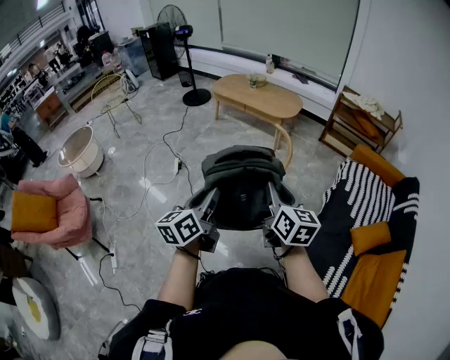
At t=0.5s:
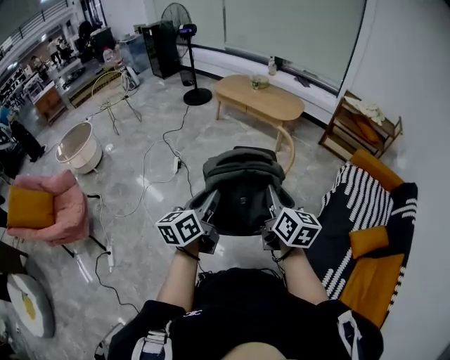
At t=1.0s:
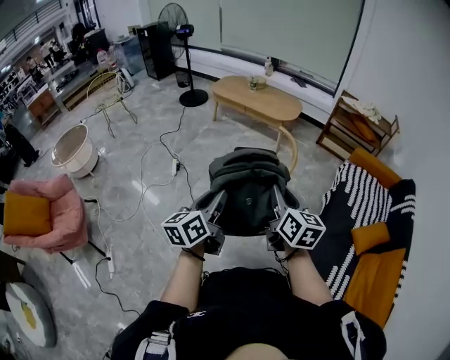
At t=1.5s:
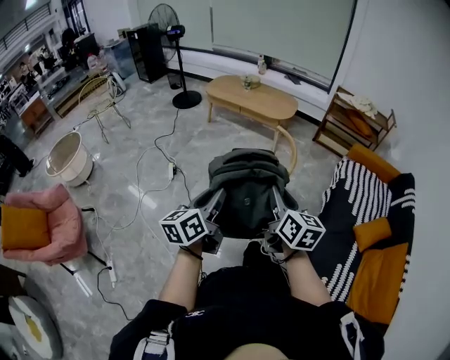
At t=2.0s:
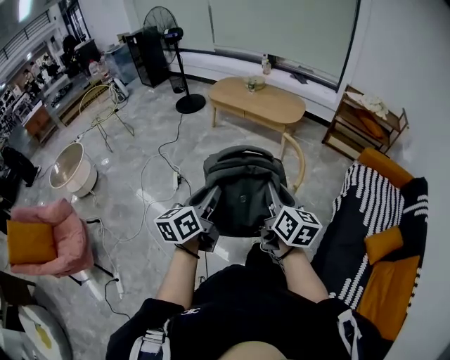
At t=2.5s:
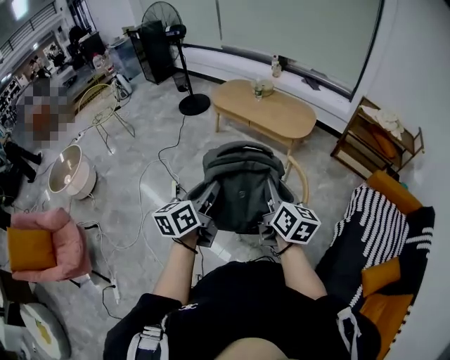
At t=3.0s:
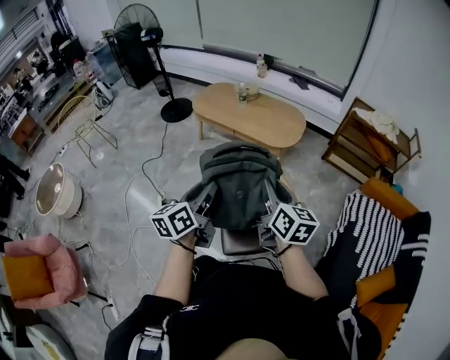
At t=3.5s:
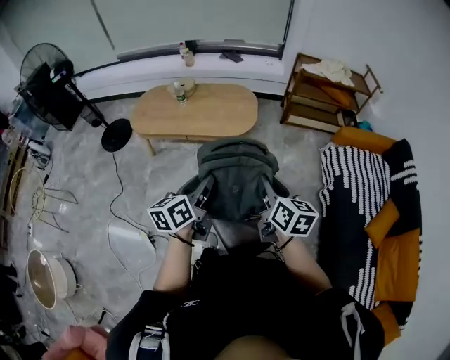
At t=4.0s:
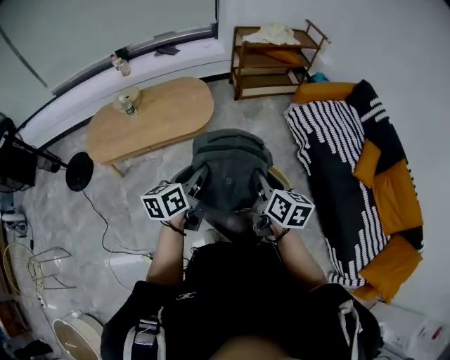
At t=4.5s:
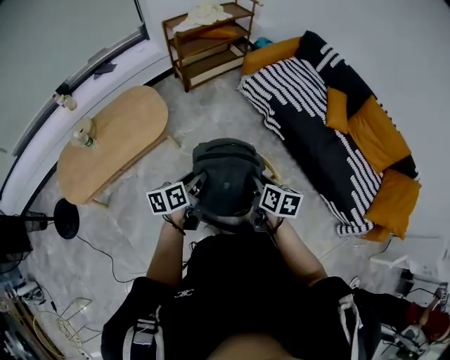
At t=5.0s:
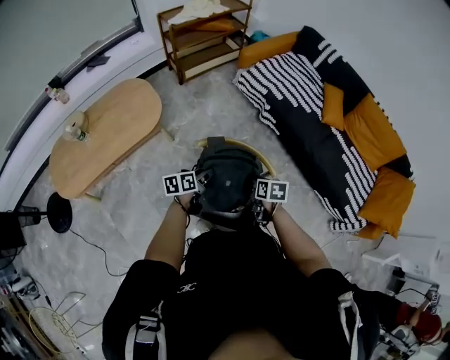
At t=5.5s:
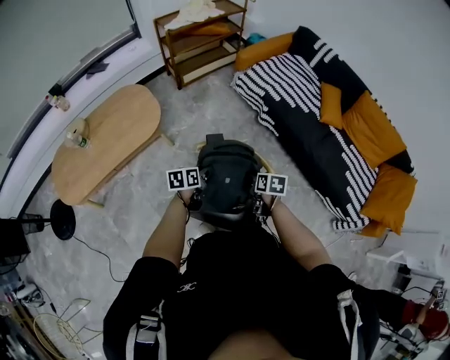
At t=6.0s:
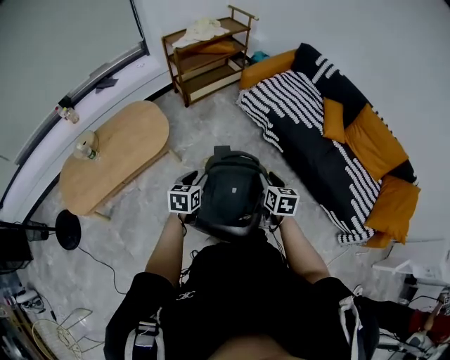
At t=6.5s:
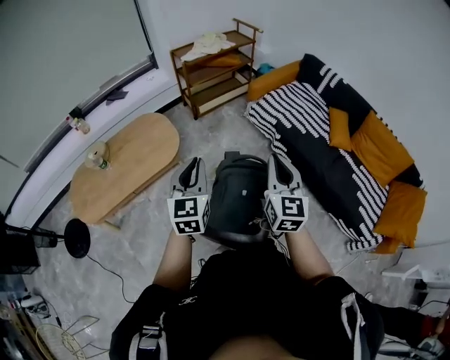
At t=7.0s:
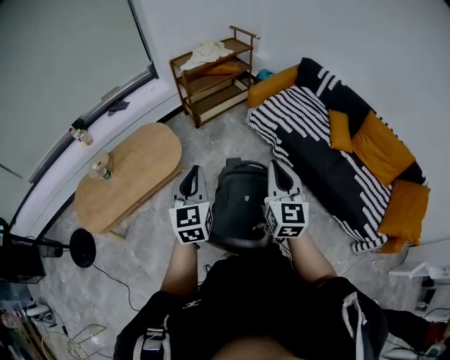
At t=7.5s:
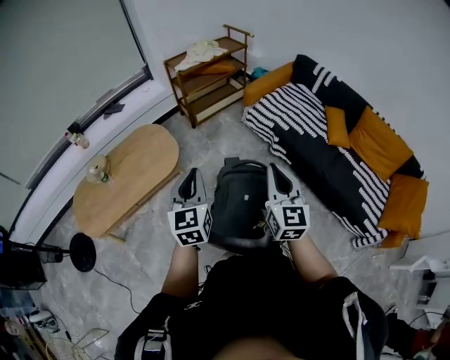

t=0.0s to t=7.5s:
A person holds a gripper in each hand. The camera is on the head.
t=0.0s to t=2.0s: The grippers both shift forward and to the left by some 20 cm.
t=2.0s to t=4.0s: The two grippers travel together, approximately 70 cm. The left gripper swivels some 50 degrees, while the right gripper turns by approximately 40 degrees.
t=4.0s to t=5.5s: The grippers both shift downward and to the right by about 25 cm. The right gripper turns by approximately 30 degrees, while the left gripper rotates approximately 40 degrees.
t=5.5s to t=7.5s: The two grippers go some 30 cm upward. The right gripper tilts its fingers about 50 degrees upward, and closes up. The left gripper swivels approximately 60 degrees, and closes its fingers.

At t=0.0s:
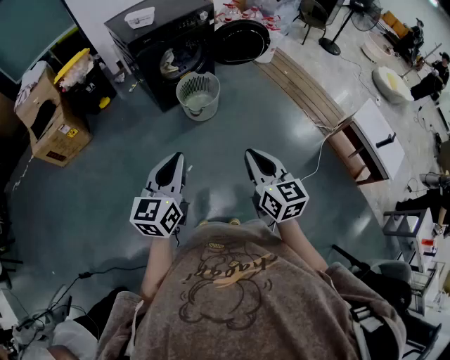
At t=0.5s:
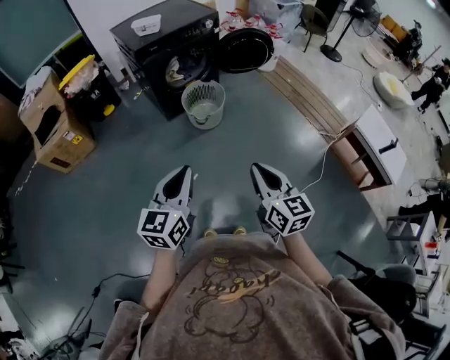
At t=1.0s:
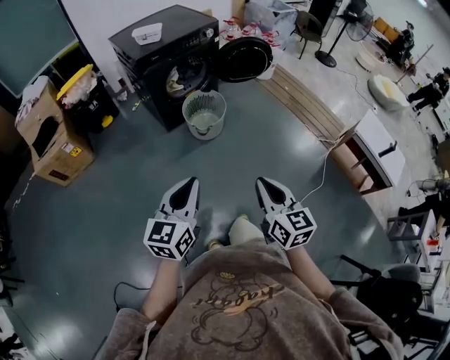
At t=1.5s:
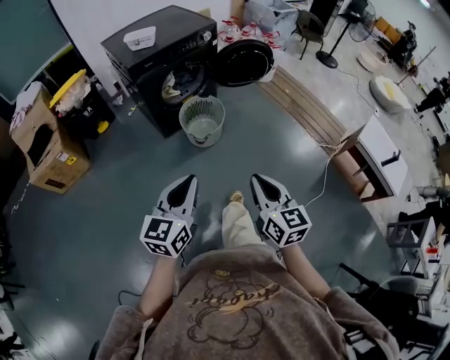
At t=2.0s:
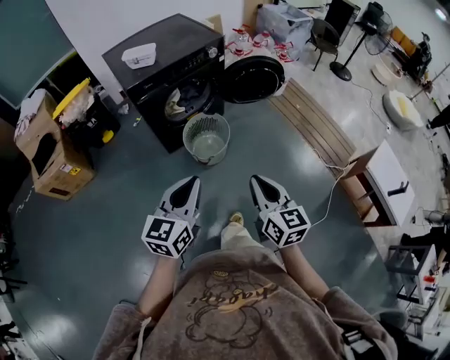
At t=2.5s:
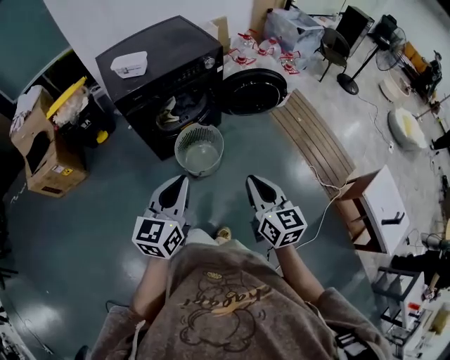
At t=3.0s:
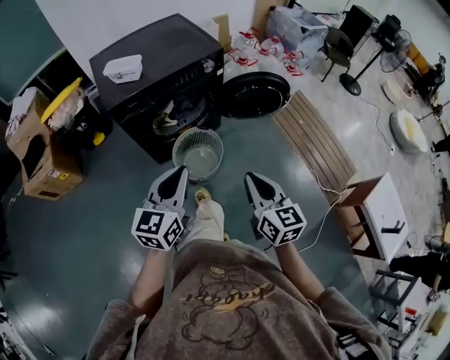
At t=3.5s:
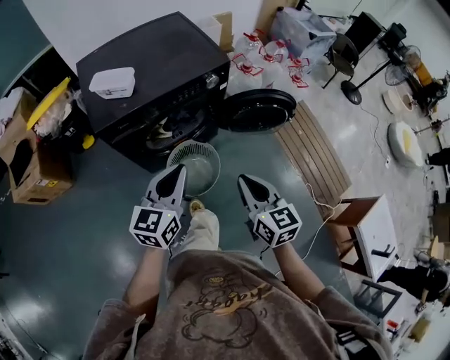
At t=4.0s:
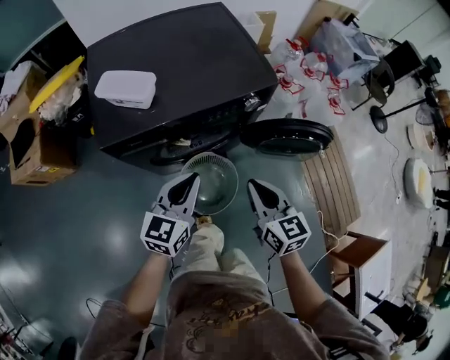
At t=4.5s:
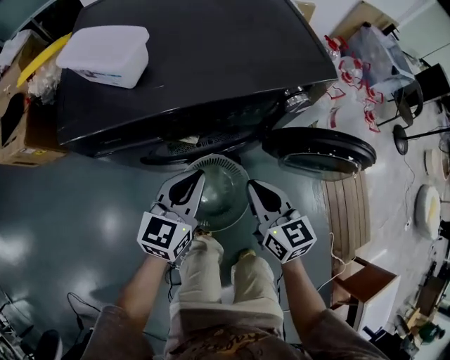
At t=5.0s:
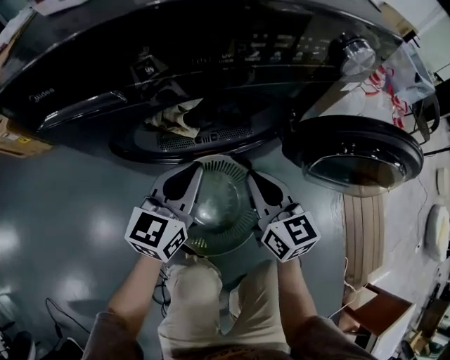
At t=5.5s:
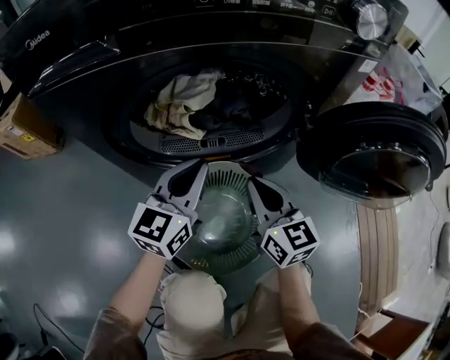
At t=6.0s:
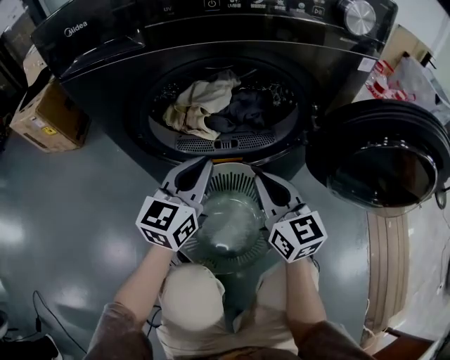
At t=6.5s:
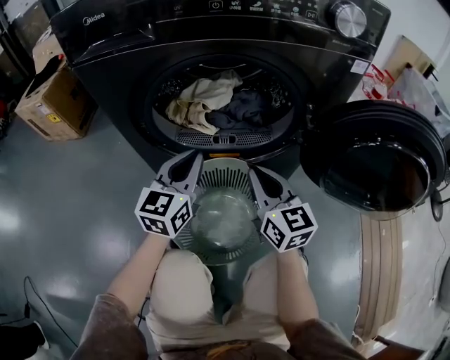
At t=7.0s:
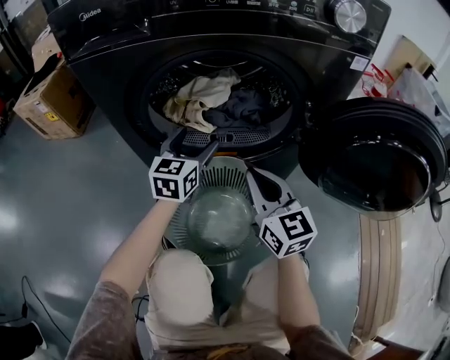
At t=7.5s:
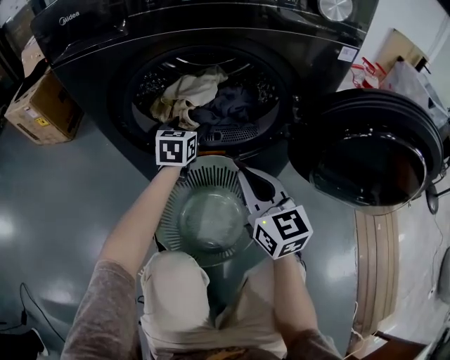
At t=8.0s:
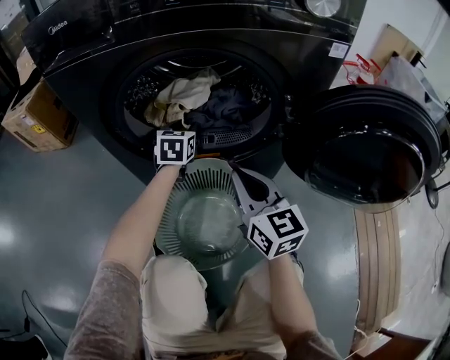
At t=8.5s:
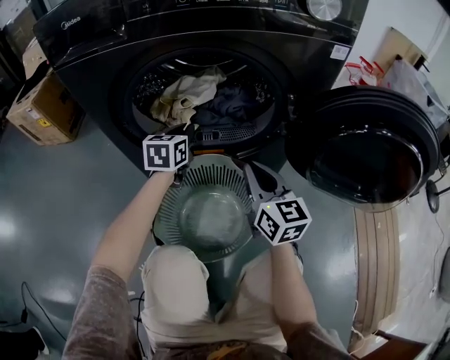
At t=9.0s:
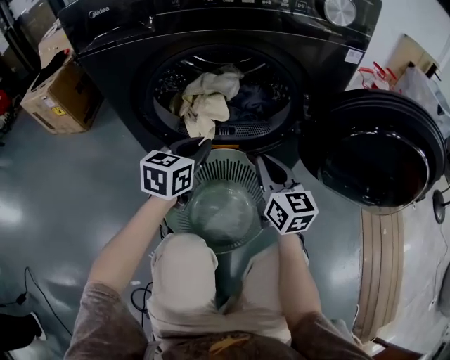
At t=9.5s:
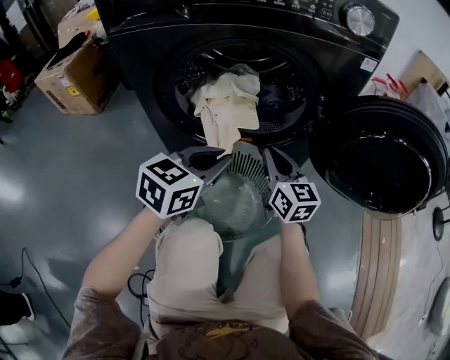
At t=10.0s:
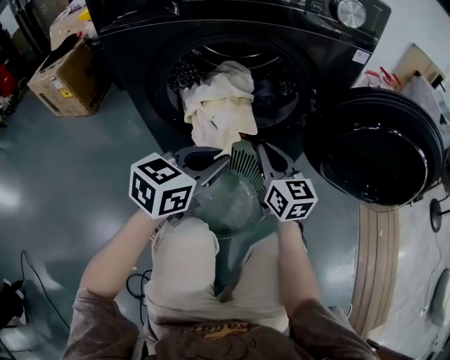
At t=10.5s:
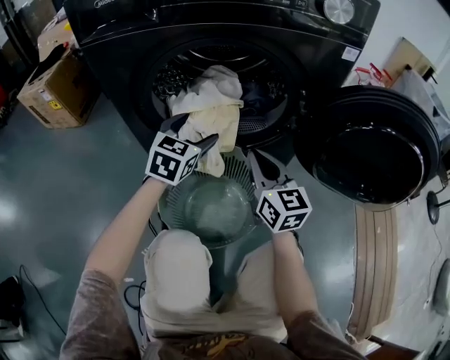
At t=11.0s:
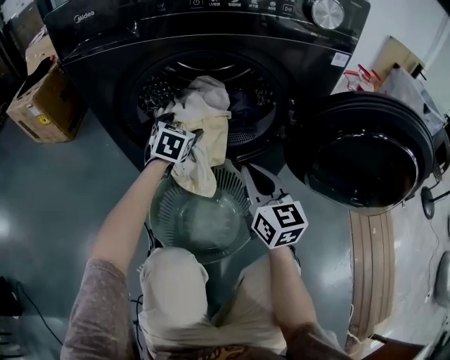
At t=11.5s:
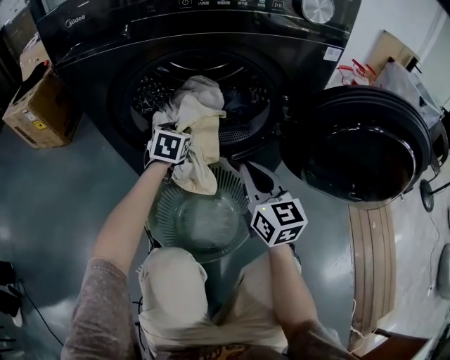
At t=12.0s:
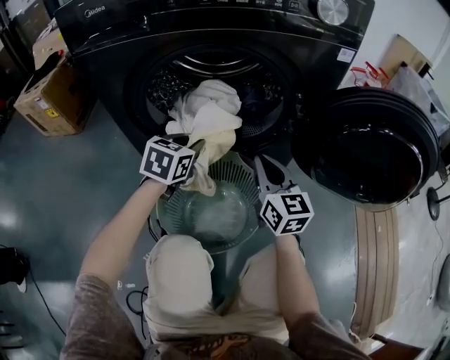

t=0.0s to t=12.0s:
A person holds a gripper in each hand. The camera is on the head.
t=0.0s to t=2.0s: Both grippers travel together forward, some 25 cm.
t=2.0s to t=4.0s: The two grippers travel together, forward, roughly 50 cm. The right gripper turns by roughly 20 degrees.
t=4.0s to t=6.0s: Both grippers move downward, approximately 40 cm. The right gripper rotates roughly 20 degrees. The left gripper changes its angle by some 20 degrees.
t=6.0s to t=8.0s: The left gripper shifts approximately 20 cm forward and downward, turns by some 30 degrees, and opens up.
t=8.0s to t=10.0s: The left gripper heads backward and upward, covering about 30 cm, and rotates about 30 degrees.
t=10.0s to t=12.0s: The left gripper moves forward and downward, some 15 cm, swivels roughly 20 degrees, and opens and closes again.

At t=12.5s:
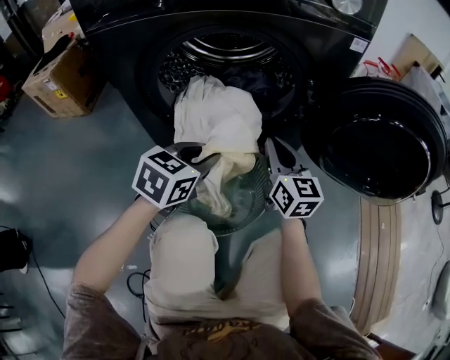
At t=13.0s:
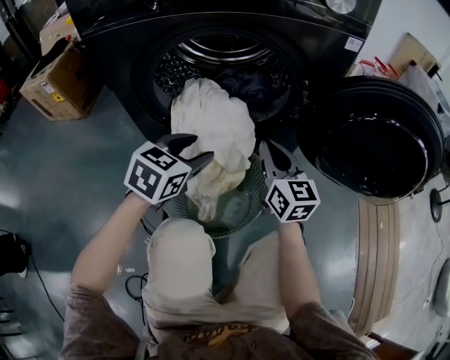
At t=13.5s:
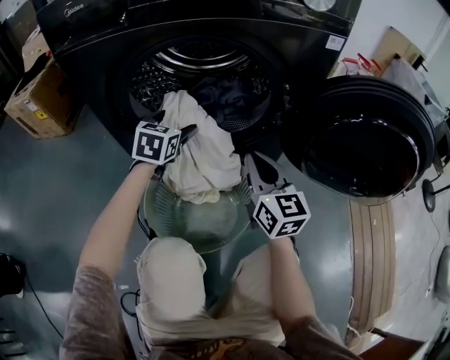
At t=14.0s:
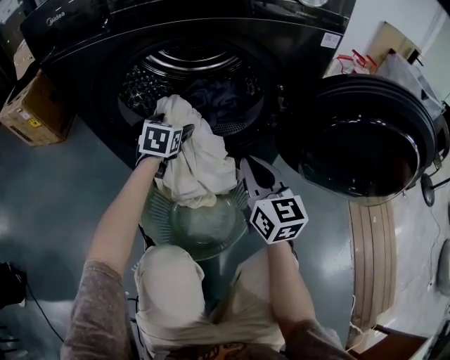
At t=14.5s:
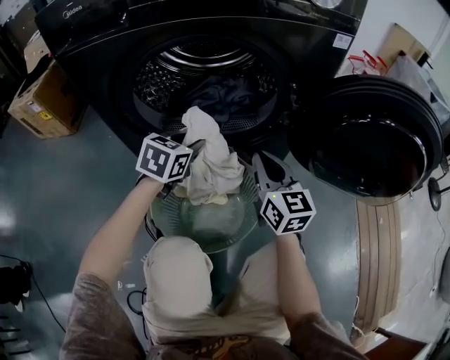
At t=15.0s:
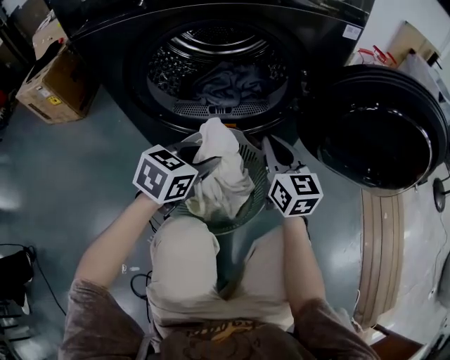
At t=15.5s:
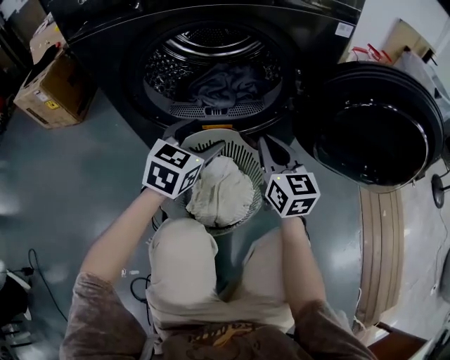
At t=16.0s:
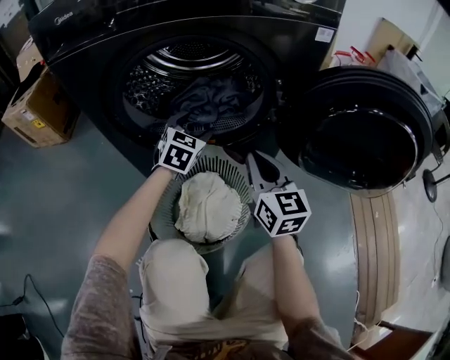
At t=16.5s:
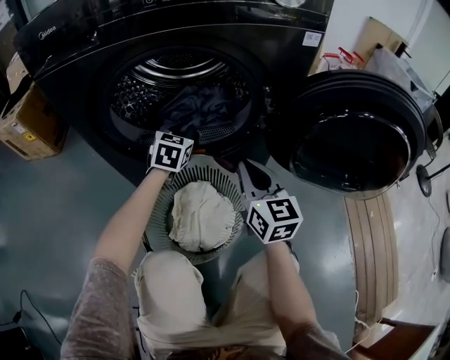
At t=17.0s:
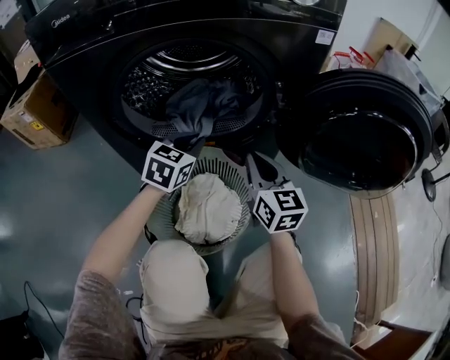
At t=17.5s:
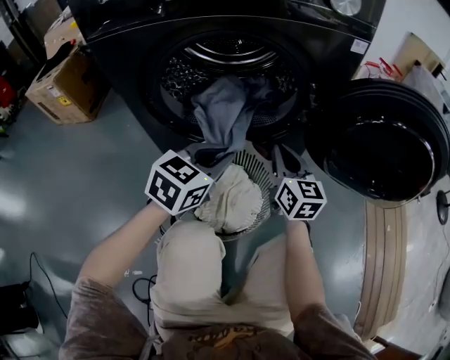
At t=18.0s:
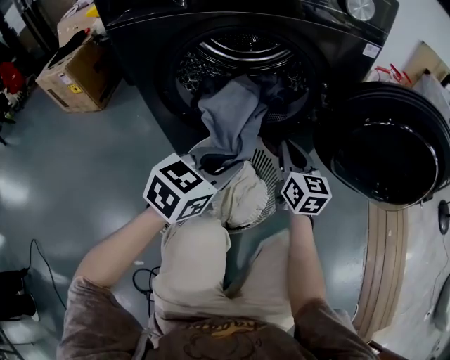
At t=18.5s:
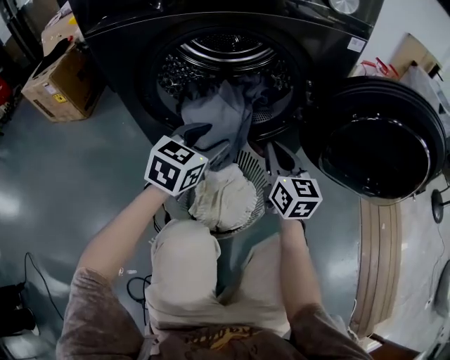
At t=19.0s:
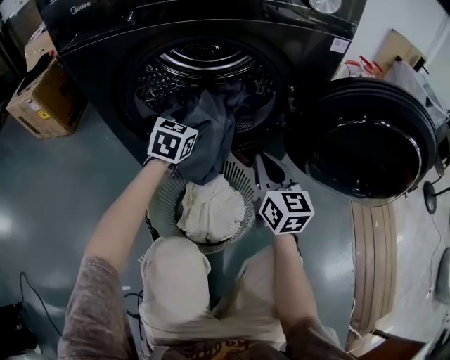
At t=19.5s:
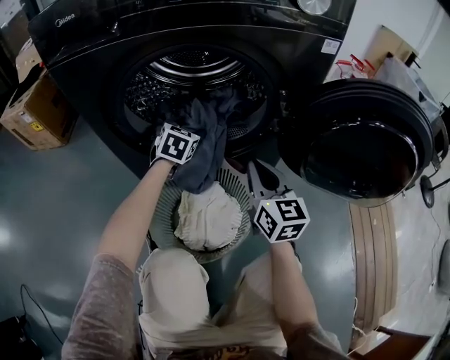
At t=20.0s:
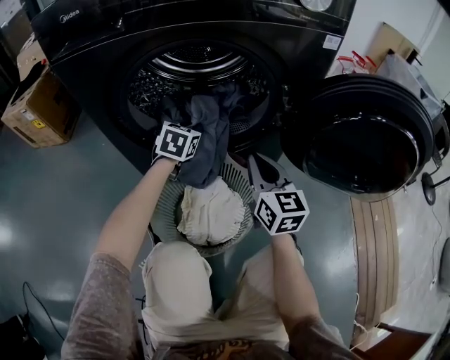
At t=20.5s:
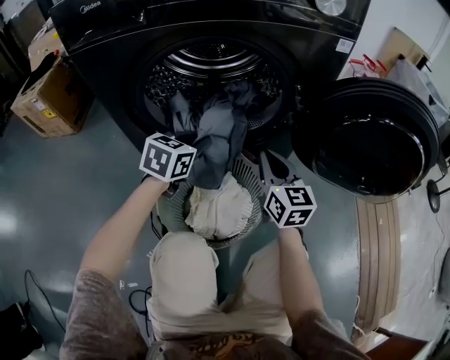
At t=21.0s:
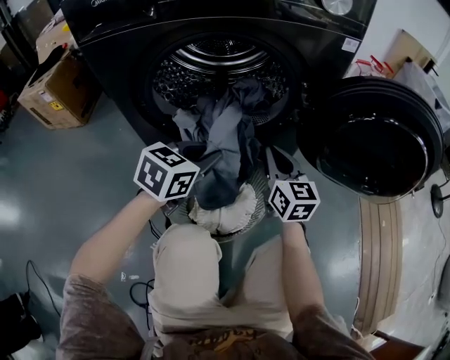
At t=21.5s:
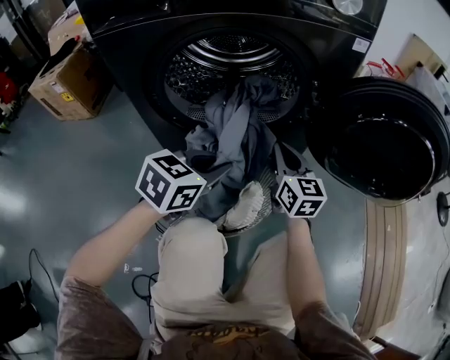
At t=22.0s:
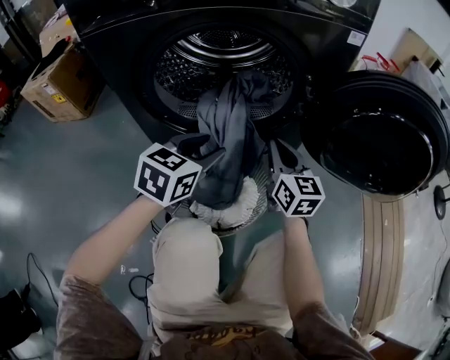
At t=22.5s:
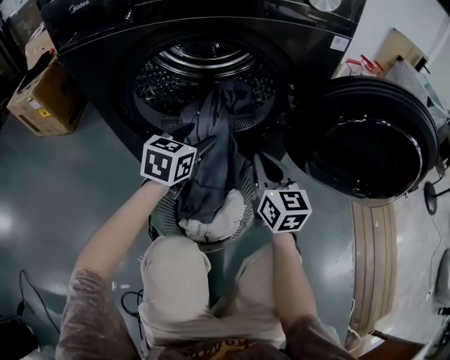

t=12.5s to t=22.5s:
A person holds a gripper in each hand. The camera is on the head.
t=12.5s to t=14.5s: The left gripper moves forward, about 10 cm, and opens and closes again.
t=14.5s to t=16.5s: The left gripper travels forward by some 10 cm, and opens, then closes again.
t=16.5s to t=18.5s: The left gripper shifts approximately 15 cm backward and upward, and opens up.
t=18.5s to t=20.5s: The left gripper reaches approximately 15 cm forward, then returns, and closes.
t=20.5s to t=22.5s: The left gripper moves about 10 cm backward and comes back, and opens its fingers.
